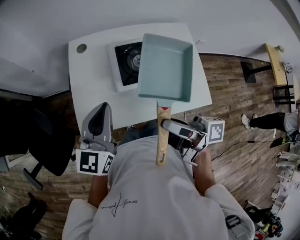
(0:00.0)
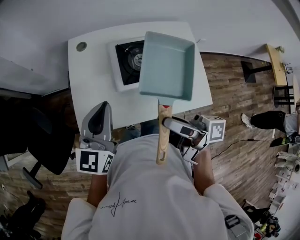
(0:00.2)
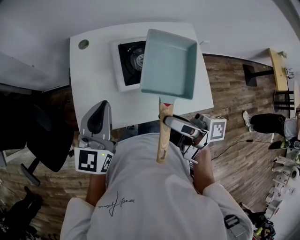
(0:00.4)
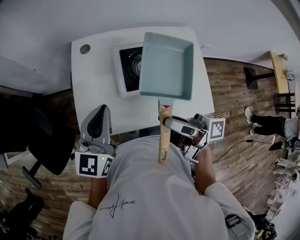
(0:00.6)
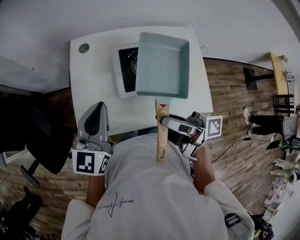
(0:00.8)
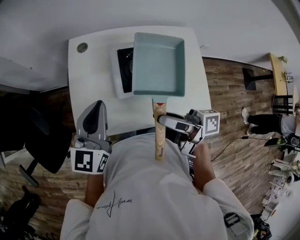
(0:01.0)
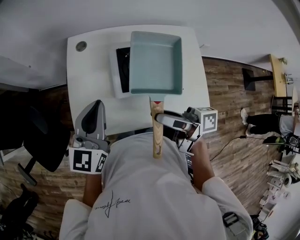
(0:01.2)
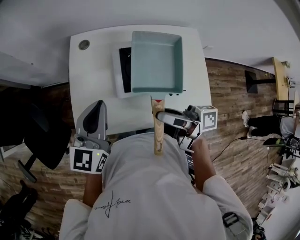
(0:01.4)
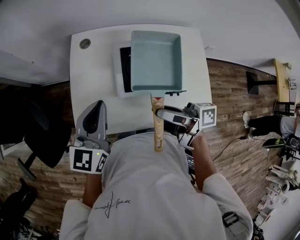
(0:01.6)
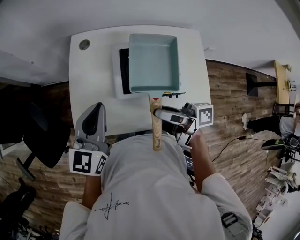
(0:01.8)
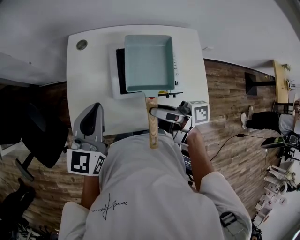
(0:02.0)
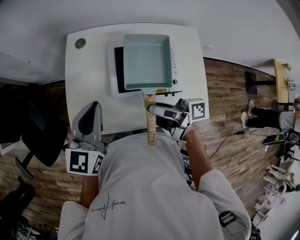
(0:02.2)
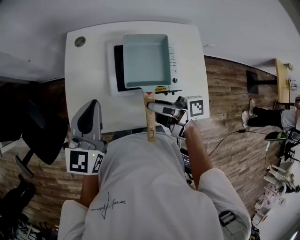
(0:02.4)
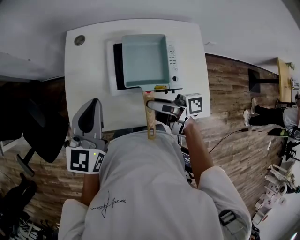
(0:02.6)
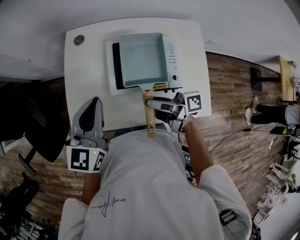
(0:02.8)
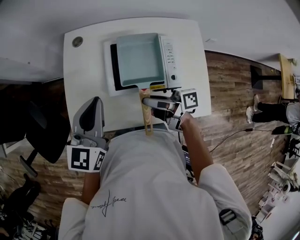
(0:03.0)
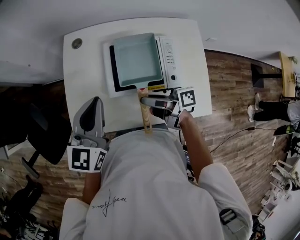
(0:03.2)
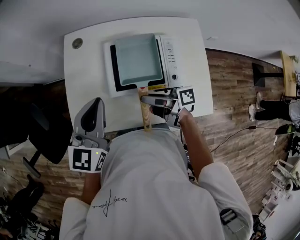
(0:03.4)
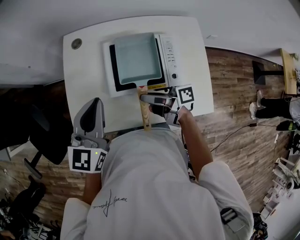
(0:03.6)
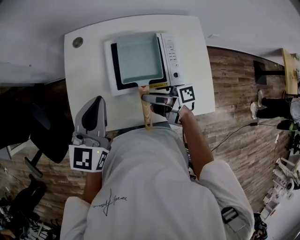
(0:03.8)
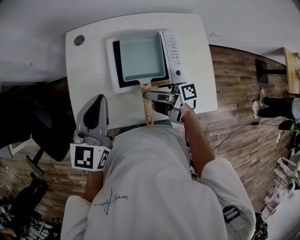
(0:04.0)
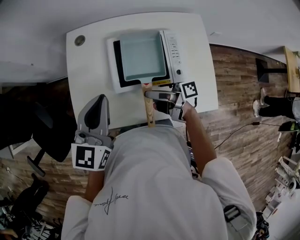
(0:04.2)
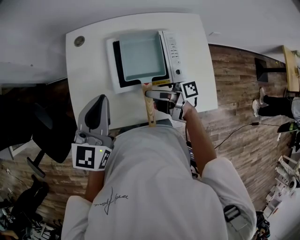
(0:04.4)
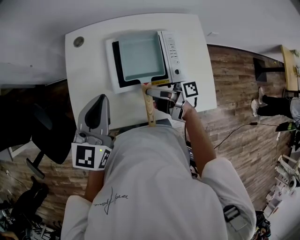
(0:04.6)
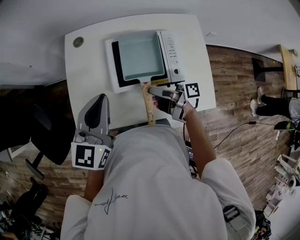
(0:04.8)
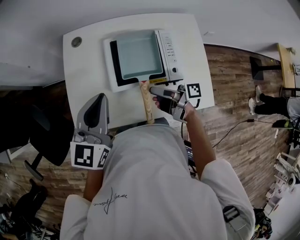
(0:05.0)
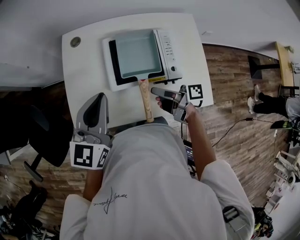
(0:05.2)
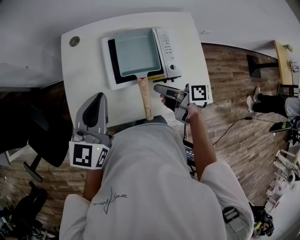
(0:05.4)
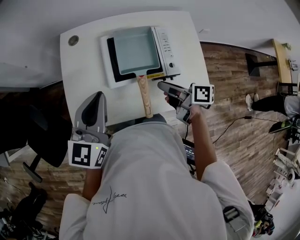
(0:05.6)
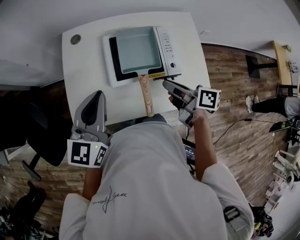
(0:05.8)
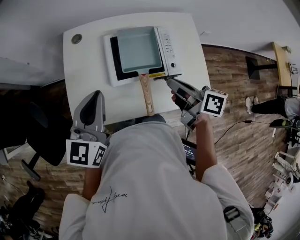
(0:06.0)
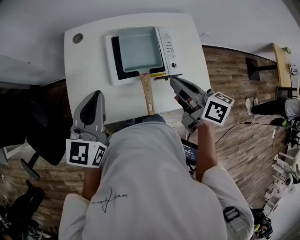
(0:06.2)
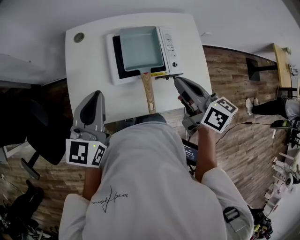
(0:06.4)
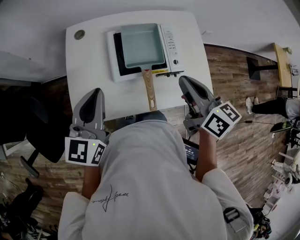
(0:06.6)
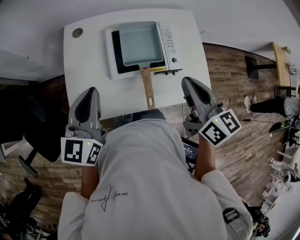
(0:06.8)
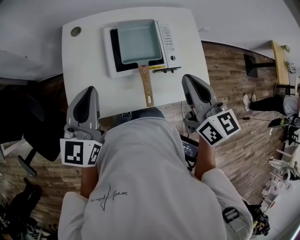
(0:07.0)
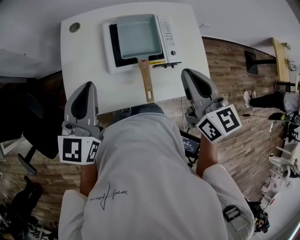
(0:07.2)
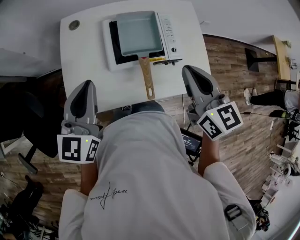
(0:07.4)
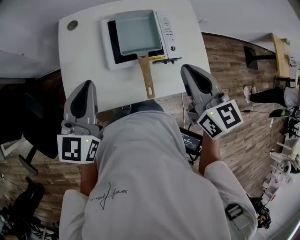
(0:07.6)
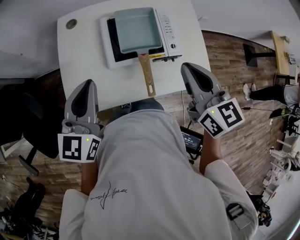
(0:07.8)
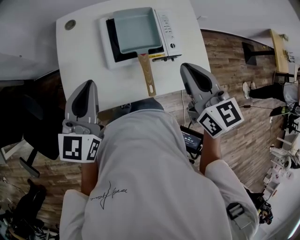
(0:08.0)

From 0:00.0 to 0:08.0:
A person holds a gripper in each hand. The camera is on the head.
From 0:00.0 to 0:01.6: The left gripper goes approximately 5 cm forward, while the right gripper moves forward and downward, roughly 10 cm.
From 0:01.6 to 0:03.2: The right gripper shifts roughly 10 cm downward.
From 0:03.2 to 0:04.8: The grippers stay close to where they were, moving slightly.
From 0:04.8 to 0:06.4: The right gripper shifts some 15 cm upward, rotates about 60 degrees, and closes its fingers.
From 0:06.4 to 0:08.0: The right gripper turns by about 30 degrees.

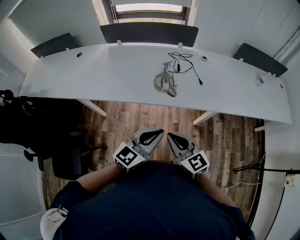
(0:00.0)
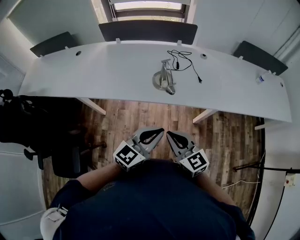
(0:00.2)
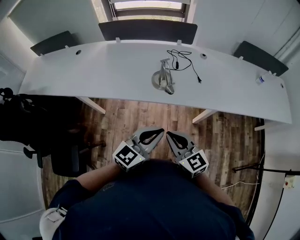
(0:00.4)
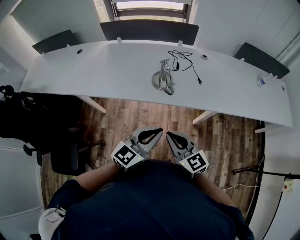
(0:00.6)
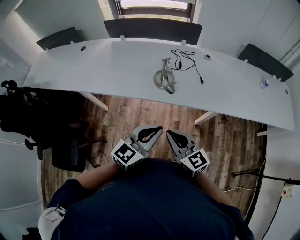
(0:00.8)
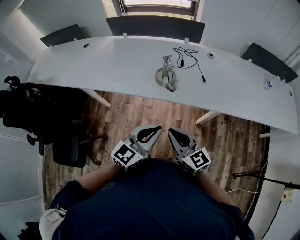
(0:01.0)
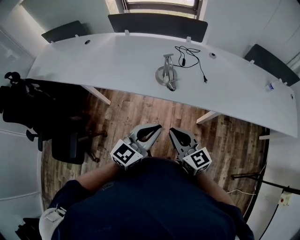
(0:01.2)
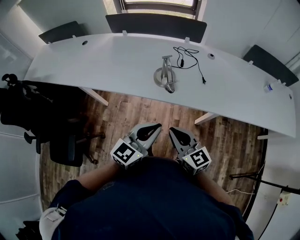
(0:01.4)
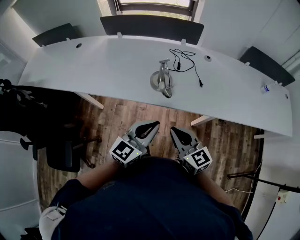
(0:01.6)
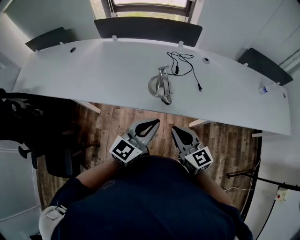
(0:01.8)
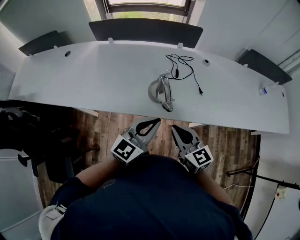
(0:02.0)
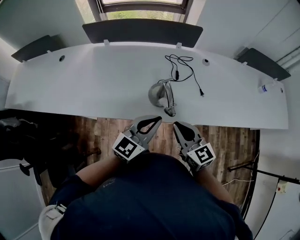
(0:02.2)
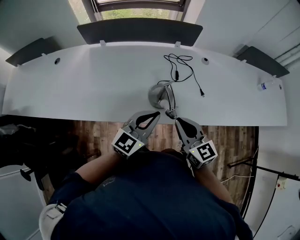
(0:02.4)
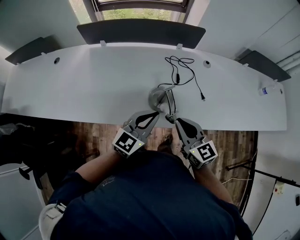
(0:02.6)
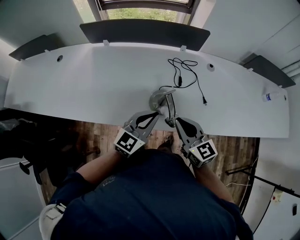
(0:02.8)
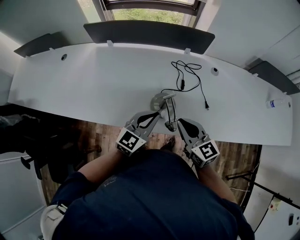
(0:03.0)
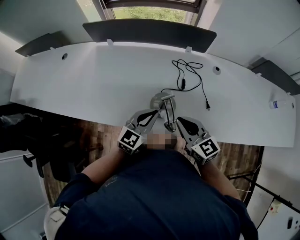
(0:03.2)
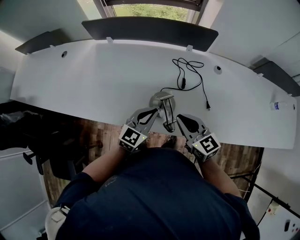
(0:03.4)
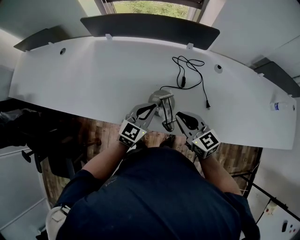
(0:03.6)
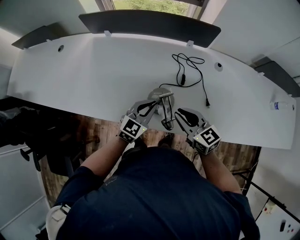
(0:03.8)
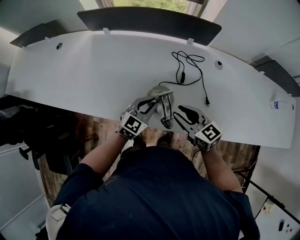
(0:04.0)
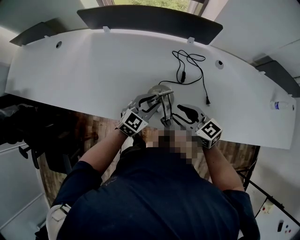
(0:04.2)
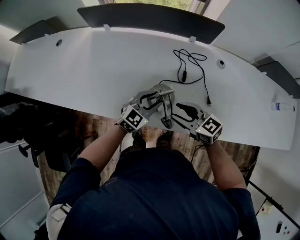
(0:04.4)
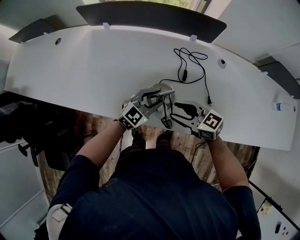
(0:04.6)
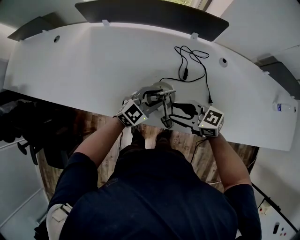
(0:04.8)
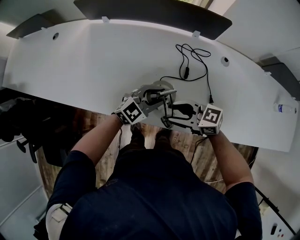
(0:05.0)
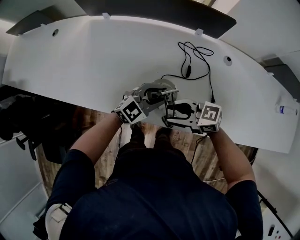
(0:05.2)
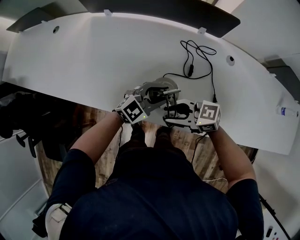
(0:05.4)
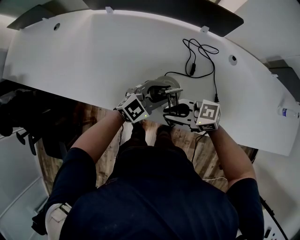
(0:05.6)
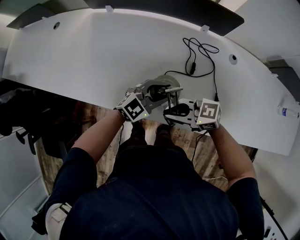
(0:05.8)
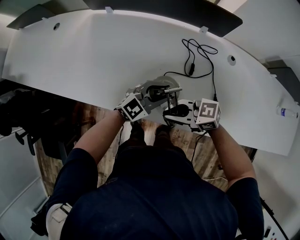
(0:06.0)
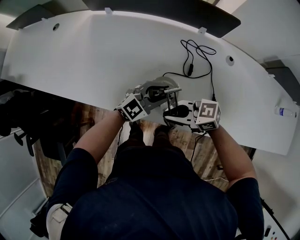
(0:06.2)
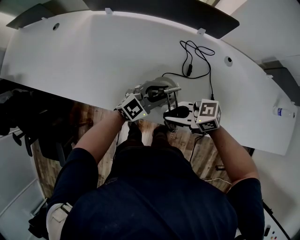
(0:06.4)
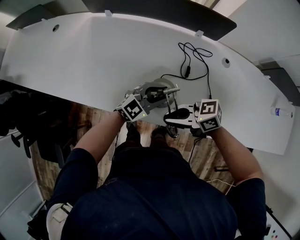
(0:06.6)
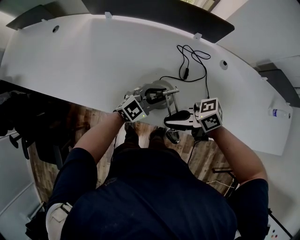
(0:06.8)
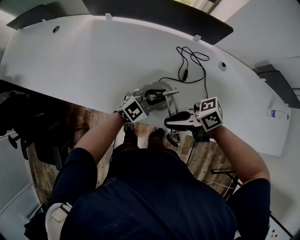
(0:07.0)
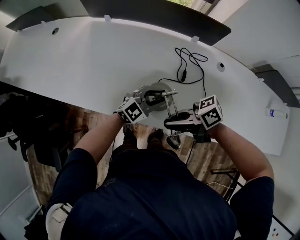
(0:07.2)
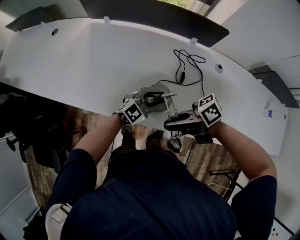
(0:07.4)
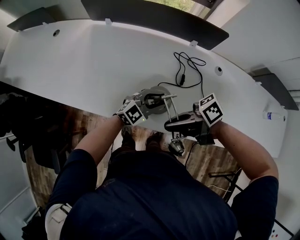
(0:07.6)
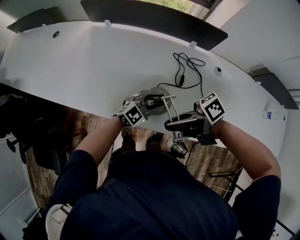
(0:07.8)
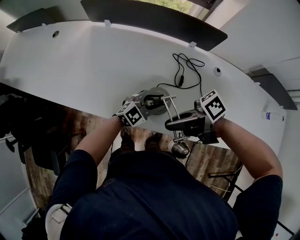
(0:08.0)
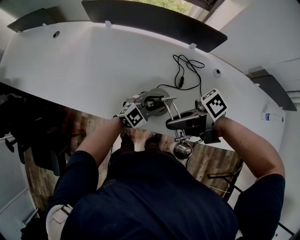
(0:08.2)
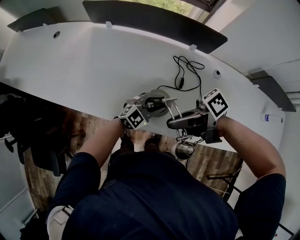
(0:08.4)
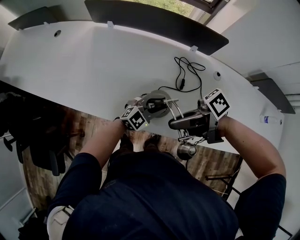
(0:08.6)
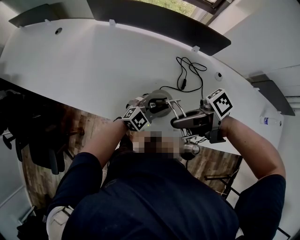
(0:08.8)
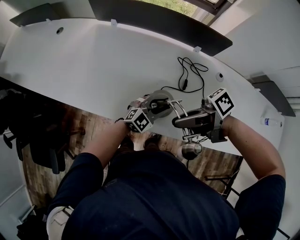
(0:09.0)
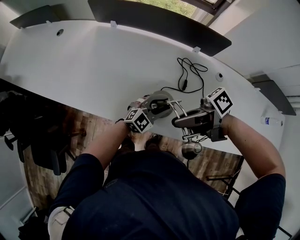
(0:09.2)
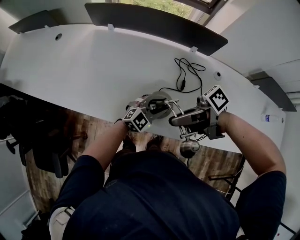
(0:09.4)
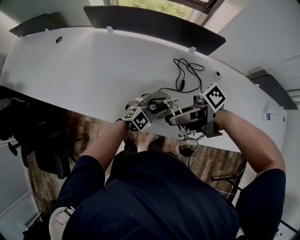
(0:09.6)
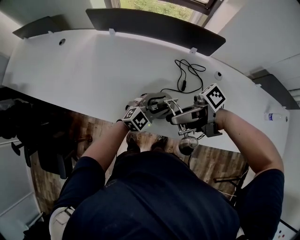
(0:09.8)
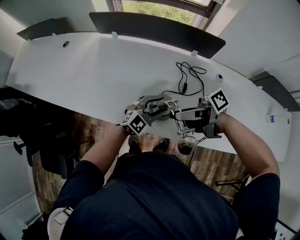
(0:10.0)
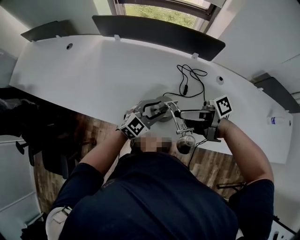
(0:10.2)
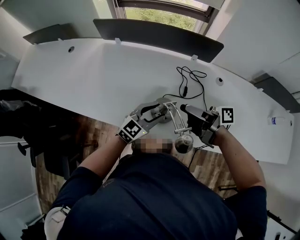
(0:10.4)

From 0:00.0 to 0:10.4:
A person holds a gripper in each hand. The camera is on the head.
From 0:00.0 to 0:01.4: The left gripper ends up some 5 cm from where it was. The right gripper moves to the right, approximately 5 cm.
From 0:01.4 to 0:03.0: Both grippers move forward, approximately 30 cm.
From 0:03.0 to 0:04.4: The right gripper moves downward, about 5 cm, turns by some 30 degrees, and opens up. The left gripper goes some 10 cm downward and forward, and opens up.
From 0:04.4 to 0:06.0: The right gripper ends up some 5 cm from where it was, swivels about 30 degrees, and closes.
From 0:06.0 to 0:07.4: The right gripper heads upward, covering roughly 5 cm, and rolls clockwise, seen from behind, by roughly 40 degrees.
From 0:07.4 to 0:09.0: The right gripper goes about 5 cm upward.
From 0:09.0 to 0:10.4: The left gripper travels upward by approximately 5 cm, while the right gripper ends up roughly 10 cm from where it was, turns by approximately 40 degrees, and opens up.

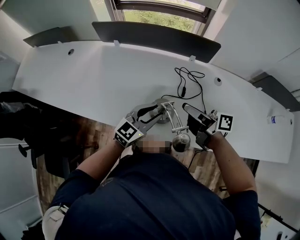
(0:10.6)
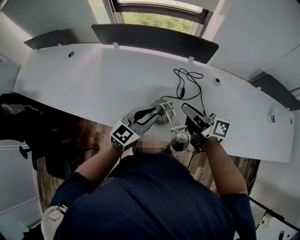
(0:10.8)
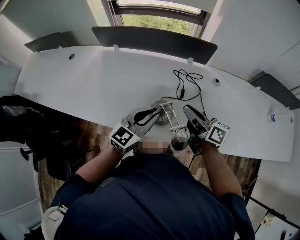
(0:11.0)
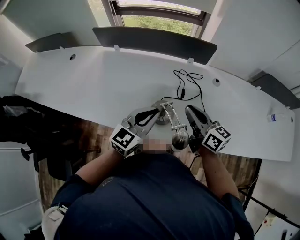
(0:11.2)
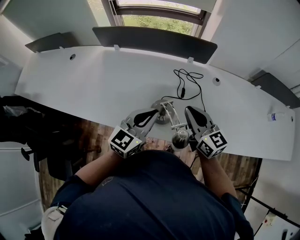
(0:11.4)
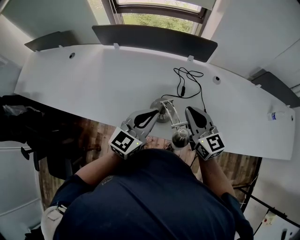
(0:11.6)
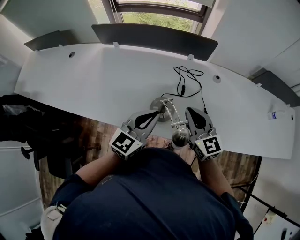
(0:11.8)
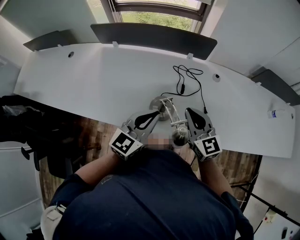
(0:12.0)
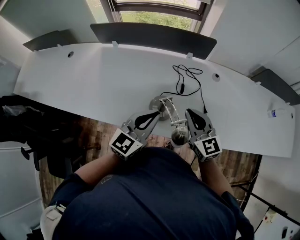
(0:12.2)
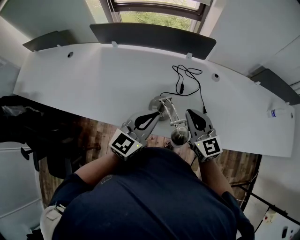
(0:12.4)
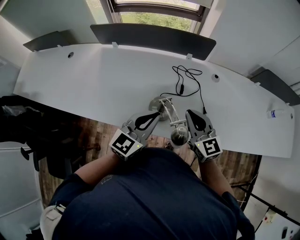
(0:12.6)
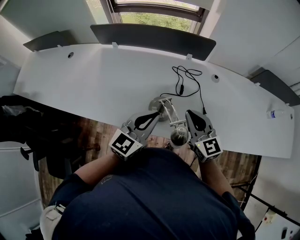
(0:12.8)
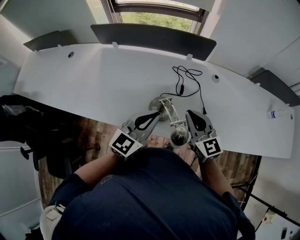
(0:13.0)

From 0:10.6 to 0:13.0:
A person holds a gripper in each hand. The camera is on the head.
From 0:10.6 to 0:11.8: The left gripper travels upward by some 5 cm, and closes its fingers, while the right gripper rolls counterclockwise, seen from behind, by approximately 60 degrees, and closes up.
From 0:11.8 to 0:13.0: The grippers move only a little.

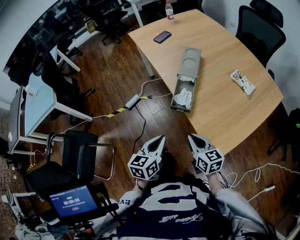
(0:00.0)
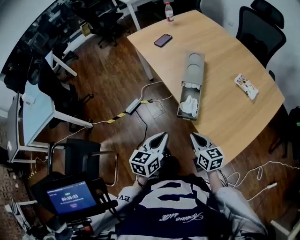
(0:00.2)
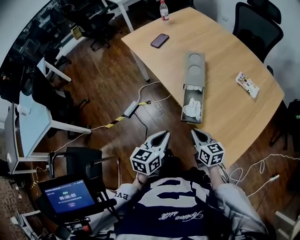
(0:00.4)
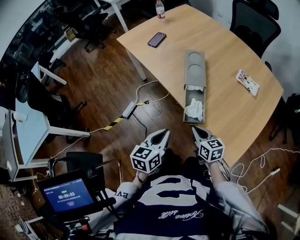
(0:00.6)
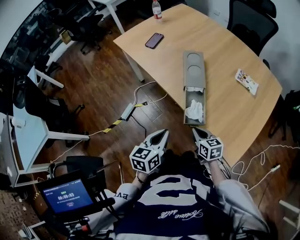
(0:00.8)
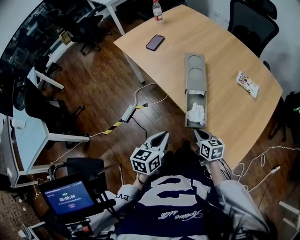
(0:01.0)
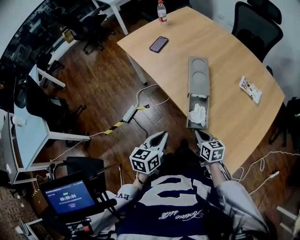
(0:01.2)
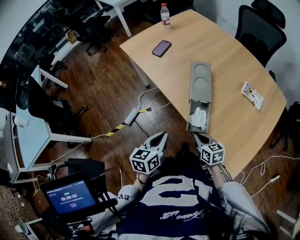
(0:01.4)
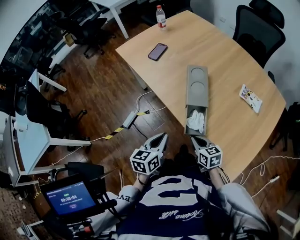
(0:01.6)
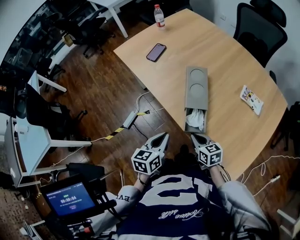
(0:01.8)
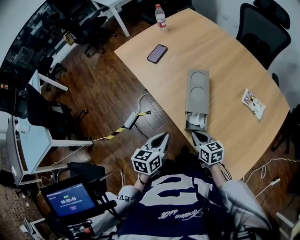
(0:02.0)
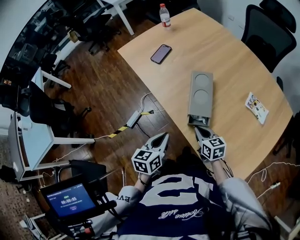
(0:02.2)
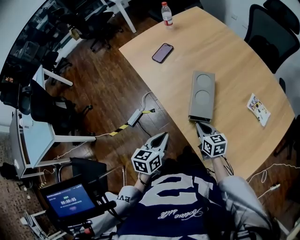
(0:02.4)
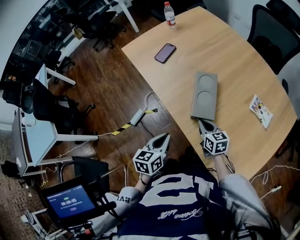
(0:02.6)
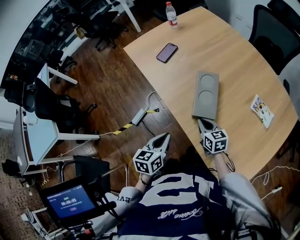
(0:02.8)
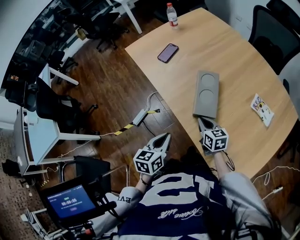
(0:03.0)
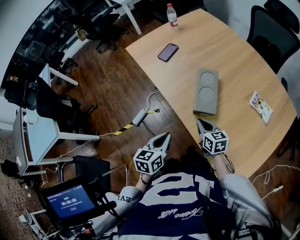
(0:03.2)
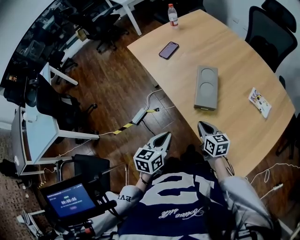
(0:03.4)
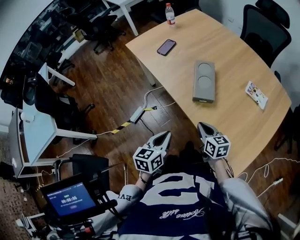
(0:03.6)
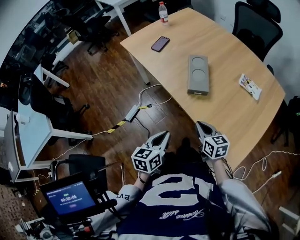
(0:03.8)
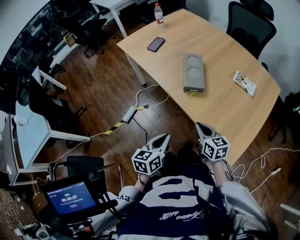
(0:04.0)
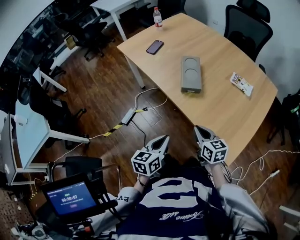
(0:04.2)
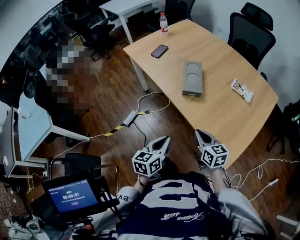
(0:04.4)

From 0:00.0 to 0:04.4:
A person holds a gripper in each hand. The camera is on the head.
From 0:00.0 to 0:01.4: The right gripper travels forward, downward and to the left by some 20 cm. Meanwhile the left gripper heads forward and to the left, covering approximately 25 cm.
From 0:01.4 to 0:03.0: The left gripper is displaced forward by some 10 cm. Meanwhile the right gripper travels forward by about 15 cm.
From 0:03.0 to 0:04.4: The two grippers go roughly 20 cm backward.
